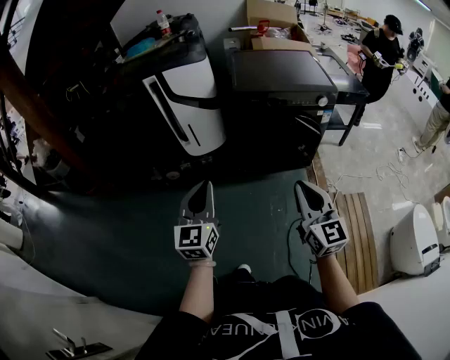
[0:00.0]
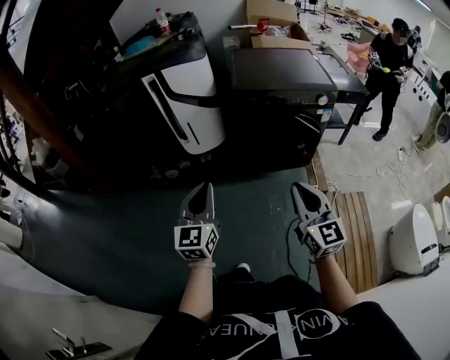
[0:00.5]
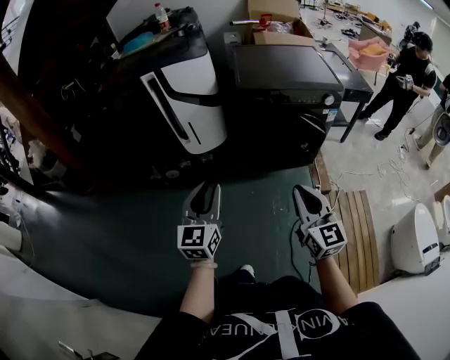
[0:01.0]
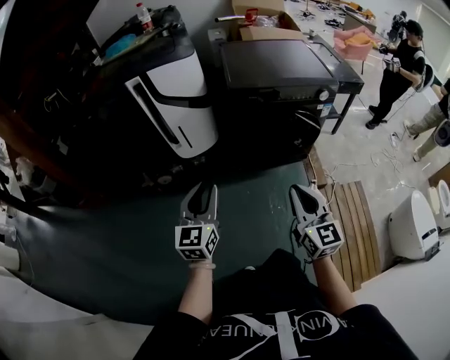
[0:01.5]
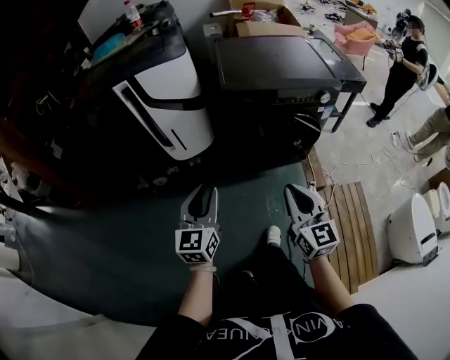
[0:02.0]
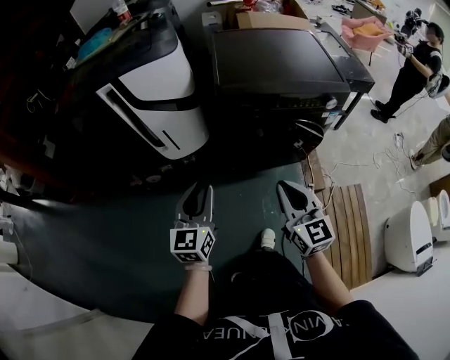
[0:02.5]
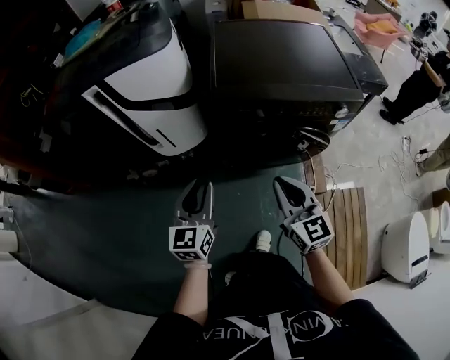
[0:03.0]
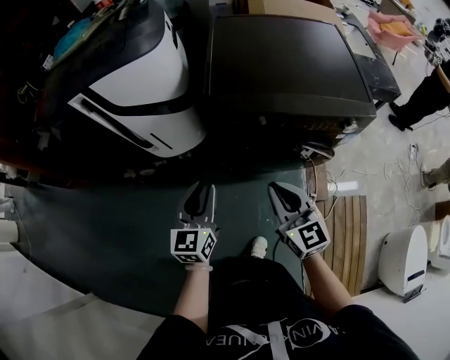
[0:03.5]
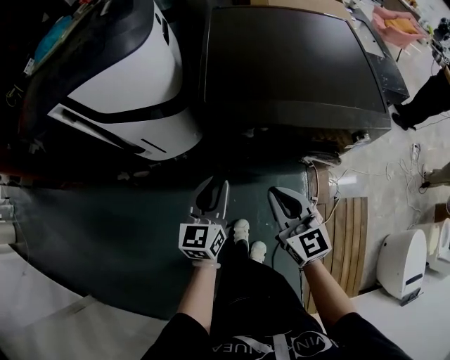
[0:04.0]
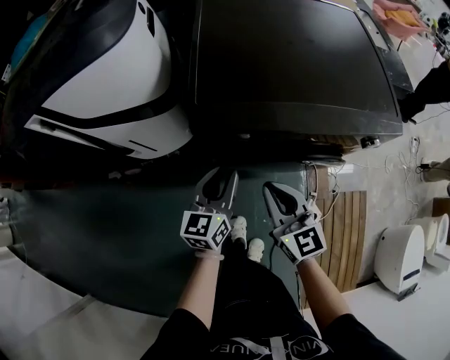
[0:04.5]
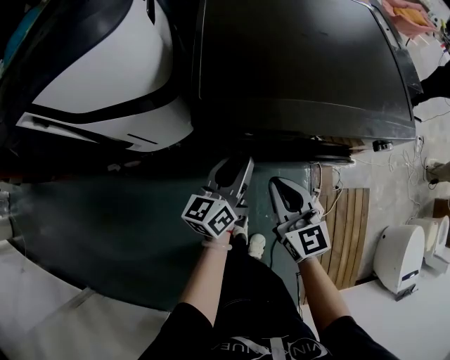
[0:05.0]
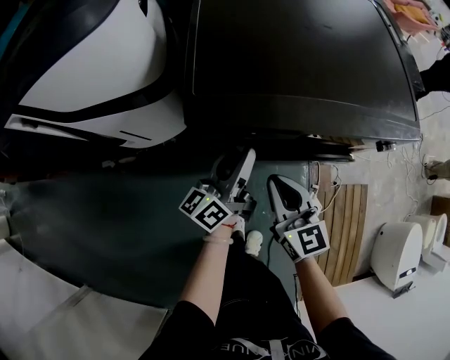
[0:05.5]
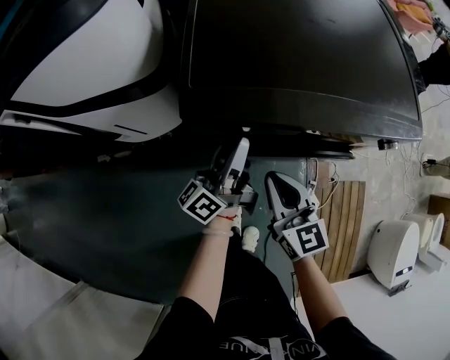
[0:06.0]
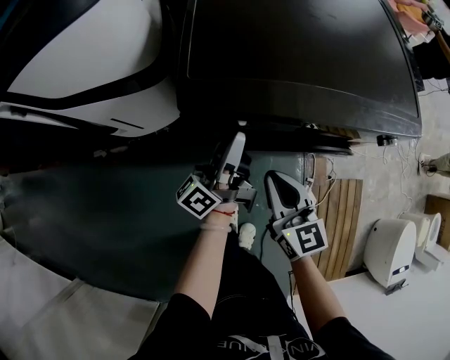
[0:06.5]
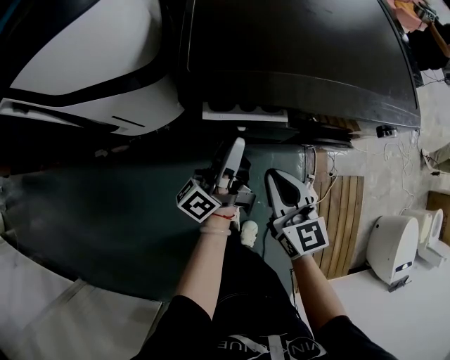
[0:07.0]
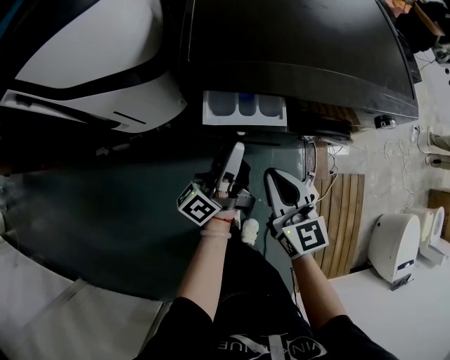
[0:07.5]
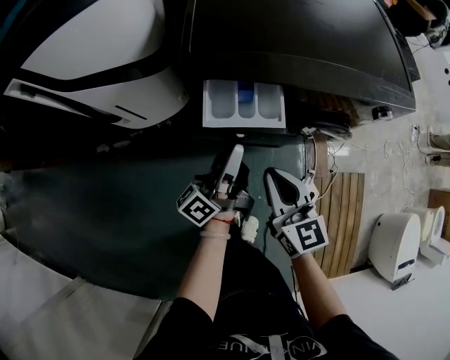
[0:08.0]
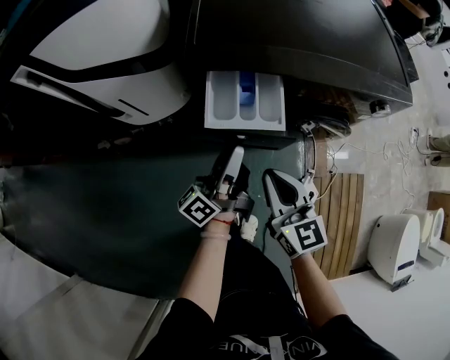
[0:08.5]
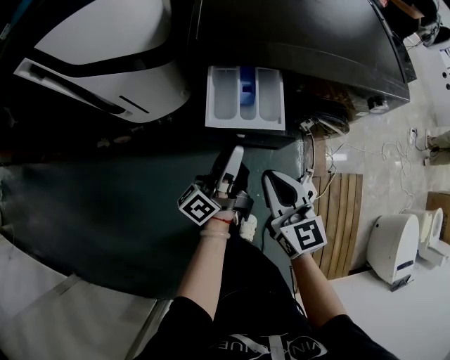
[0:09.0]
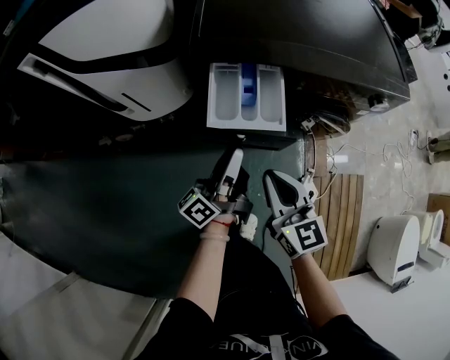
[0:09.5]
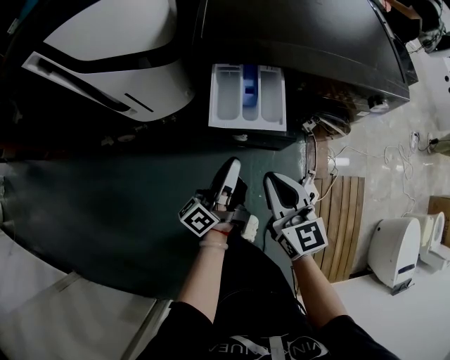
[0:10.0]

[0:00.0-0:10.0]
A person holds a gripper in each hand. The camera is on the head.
0:00.0 to 0:02.0: The two grippers go roughly 15 cm forward and downward.
0:02.0 to 0:04.0: The right gripper goes about 30 cm forward; the left gripper is displaced forward, to the right and downward by approximately 35 cm.
0:04.0 to 0:06.0: The left gripper heads forward and to the right, covering roughly 15 cm, and twists roughly 50 degrees counterclockwise, seen from behind, while the right gripper travels downward and forward by approximately 10 cm.
0:06.0 to 0:08.0: Both grippers move backward, approximately 10 cm.
0:08.0 to 0:10.0: The two grippers go some 5 cm backward. The left gripper closes up.

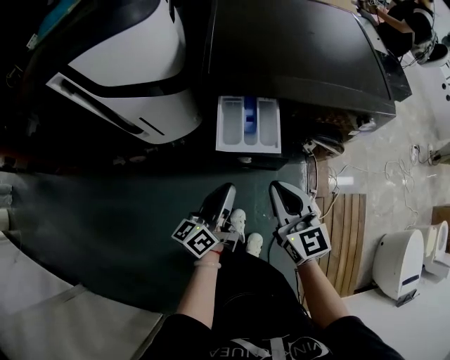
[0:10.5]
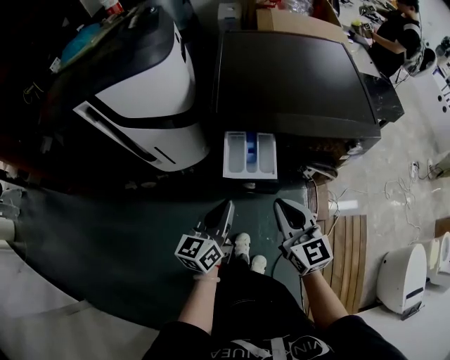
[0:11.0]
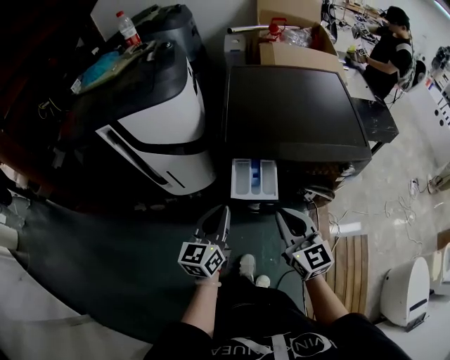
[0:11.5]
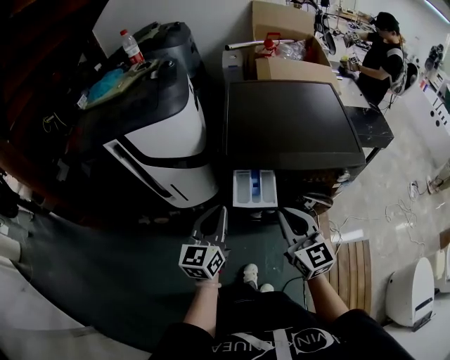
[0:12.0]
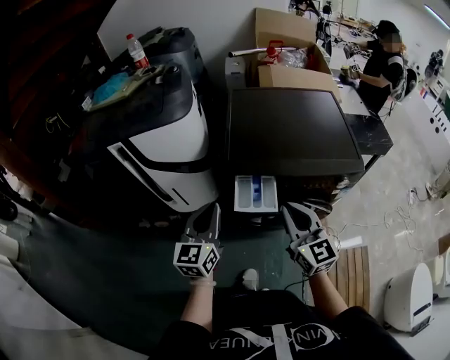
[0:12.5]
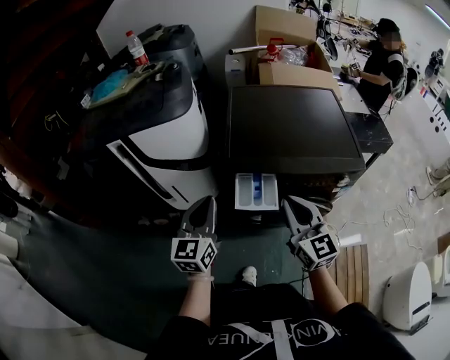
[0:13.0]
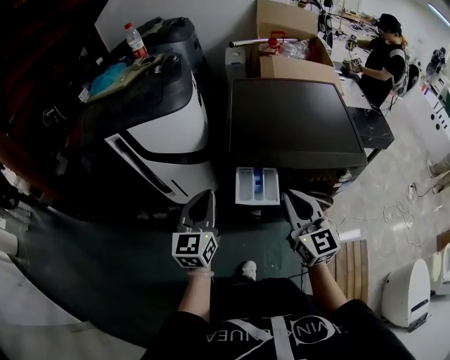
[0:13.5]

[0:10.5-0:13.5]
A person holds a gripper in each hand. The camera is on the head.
0:10.5 to 0:12.0: The grippers both shift upward by roughly 15 cm. The left gripper turns by roughly 40 degrees.
0:12.0 to 0:13.5: The left gripper shifts by about 5 cm.

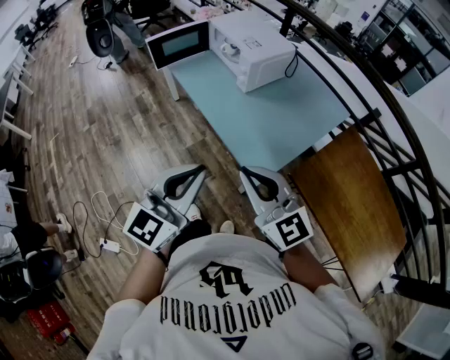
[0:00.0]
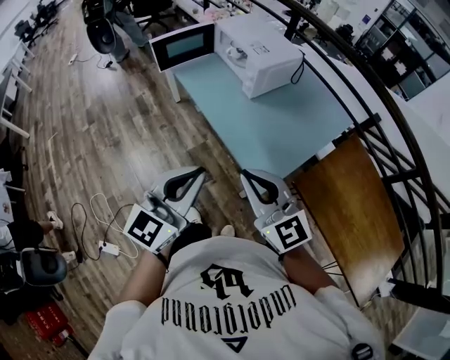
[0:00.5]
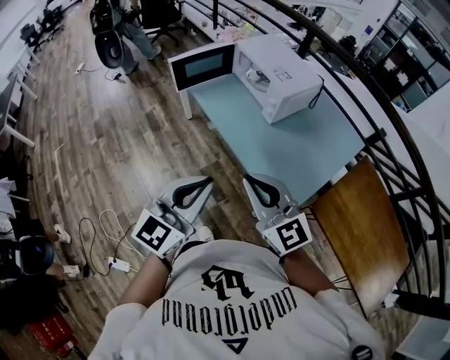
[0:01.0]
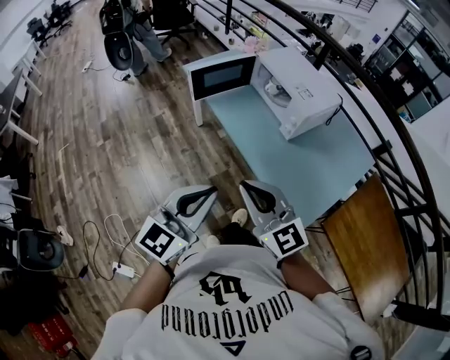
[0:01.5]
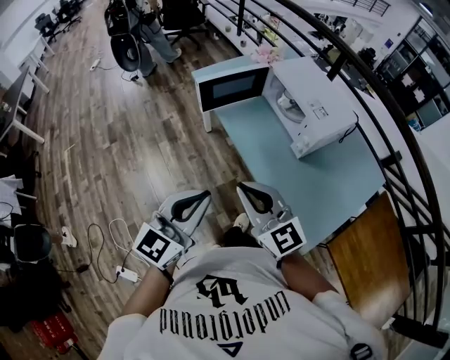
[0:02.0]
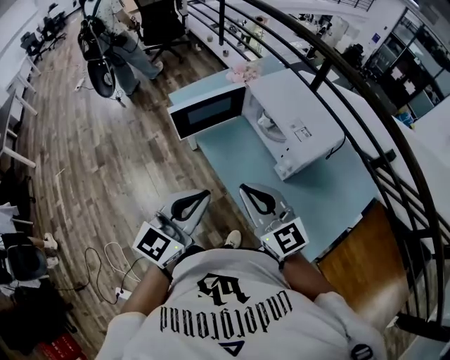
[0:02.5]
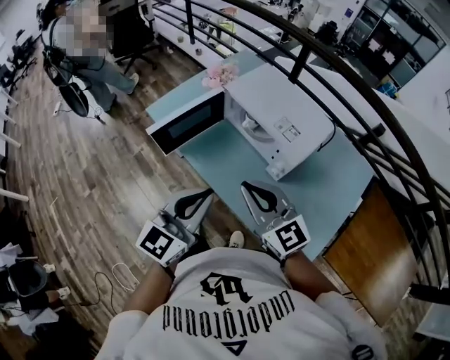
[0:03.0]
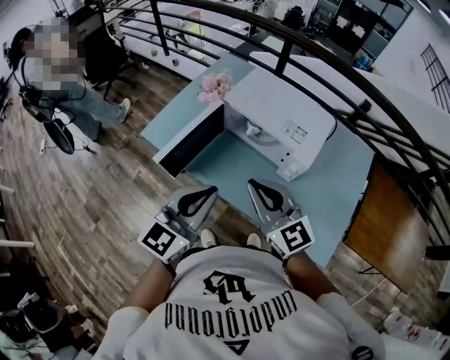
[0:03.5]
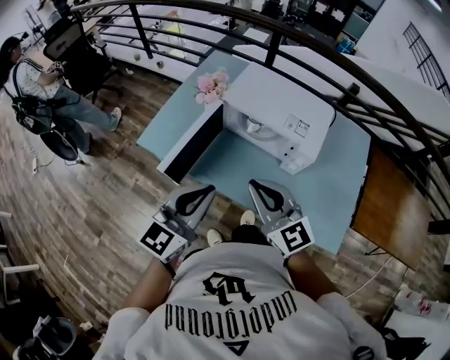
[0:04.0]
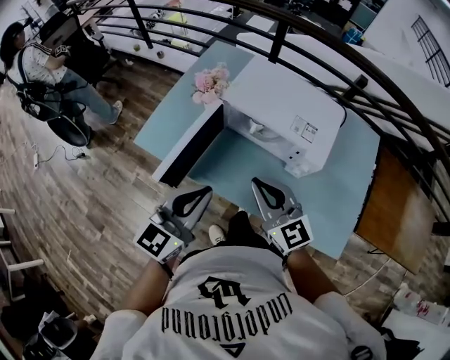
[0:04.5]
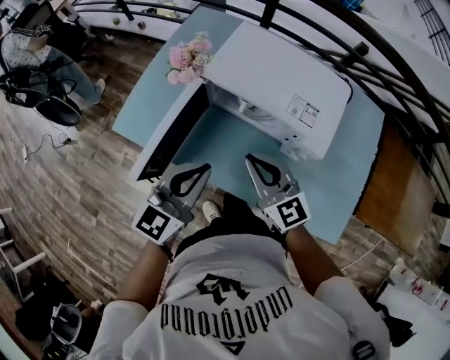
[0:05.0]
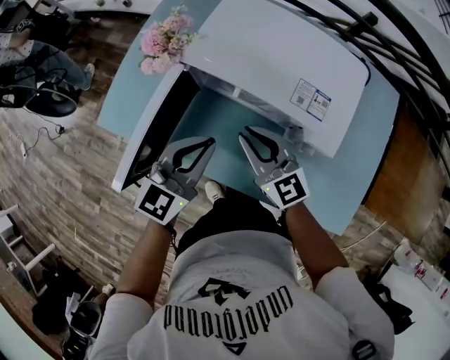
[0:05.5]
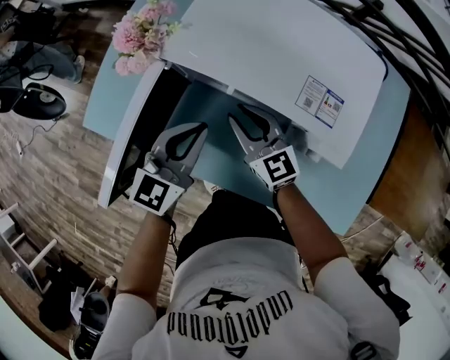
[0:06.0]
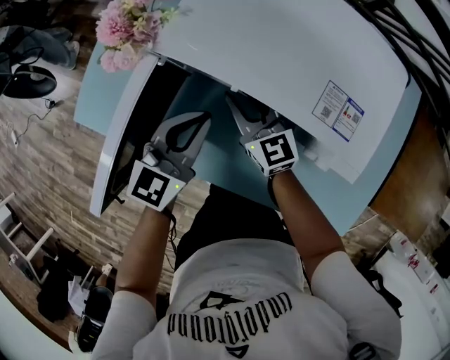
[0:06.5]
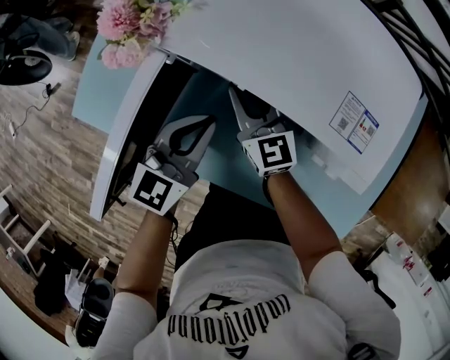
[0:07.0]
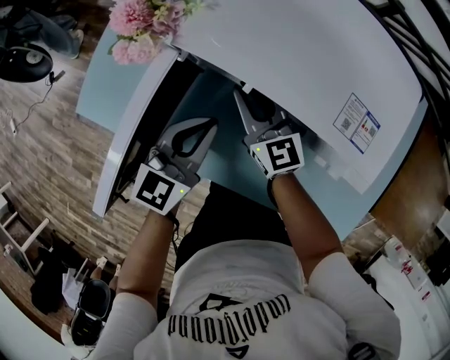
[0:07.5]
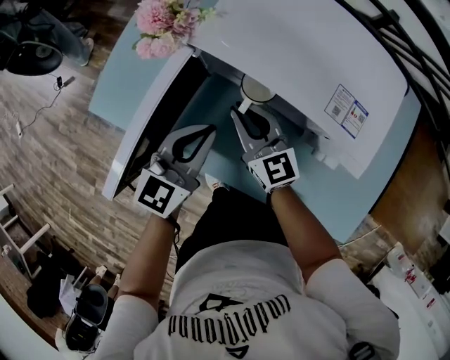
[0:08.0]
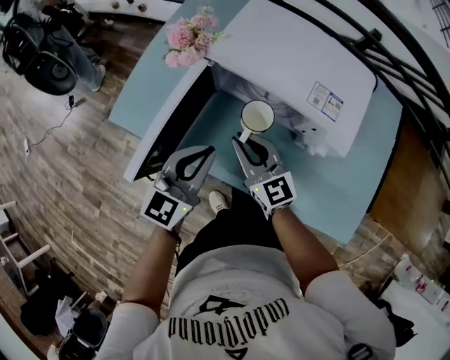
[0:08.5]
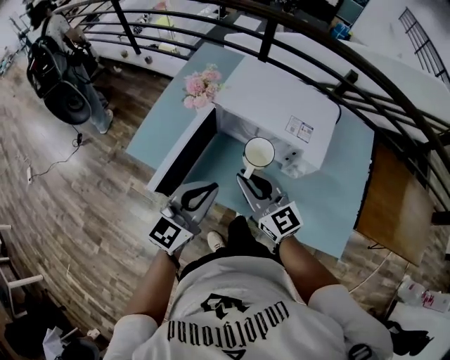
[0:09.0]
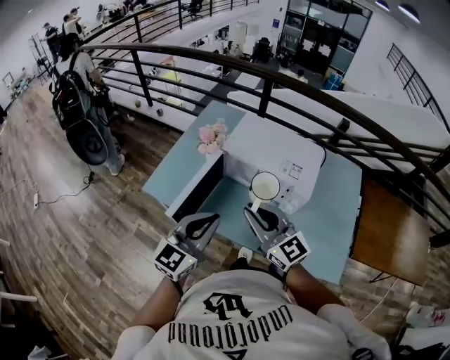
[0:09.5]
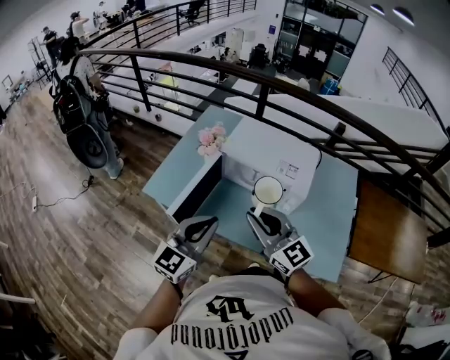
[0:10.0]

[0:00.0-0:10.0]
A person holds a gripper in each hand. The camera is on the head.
0:00.0 to 0:02.0: The grippers both shift forward and to the left by approximately 30 cm.
0:02.0 to 0:04.0: The right gripper ends up approximately 25 cm from where it was, and swivels approximately 40 degrees, while the left gripper changes place by approximately 30 cm, and rotates about 30 degrees.
0:04.0 to 0:06.0: The left gripper travels forward and downward by about 30 cm. The right gripper travels downward and forward by about 35 cm.
0:08.0 to 0:10.0: Both grippers move upward and backward, roughly 35 cm.

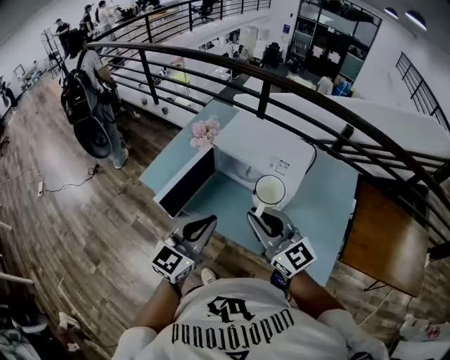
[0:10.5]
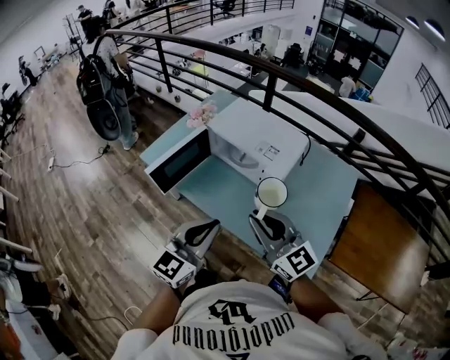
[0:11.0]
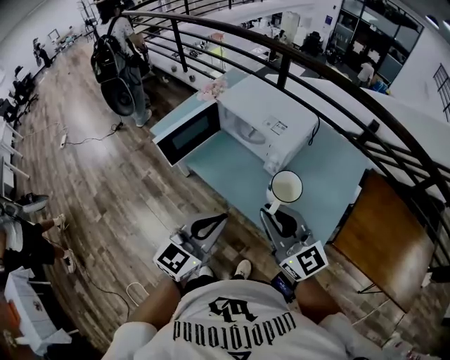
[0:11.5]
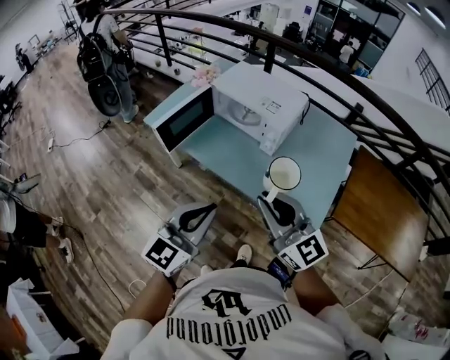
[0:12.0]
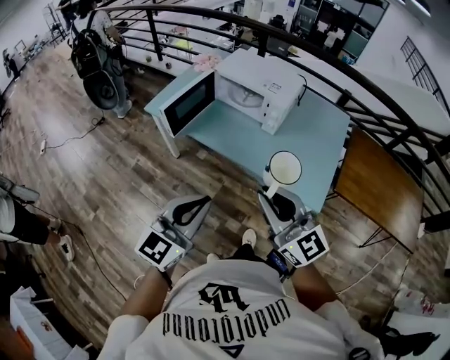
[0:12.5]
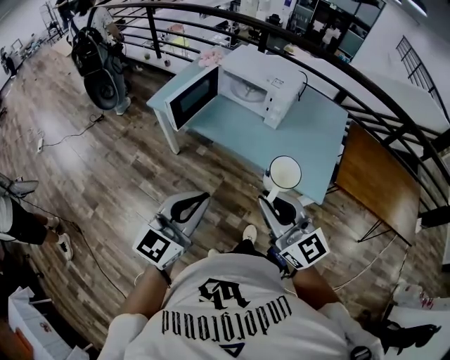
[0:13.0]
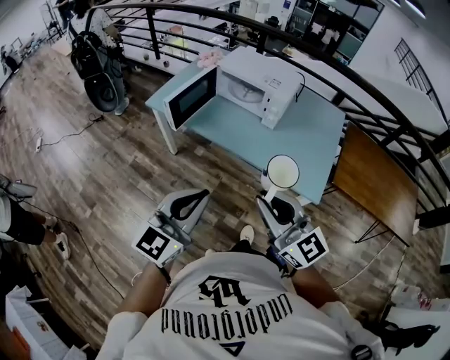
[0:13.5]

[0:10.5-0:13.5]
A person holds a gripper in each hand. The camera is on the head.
0:10.5 to 0:12.0: The left gripper is displaced backward by approximately 25 cm; the right gripper travels backward and to the right by roughly 25 cm.
0:12.0 to 0:13.5: The grippers both shift backward and to the left by roughly 15 cm.
